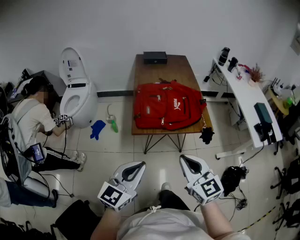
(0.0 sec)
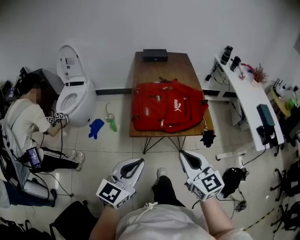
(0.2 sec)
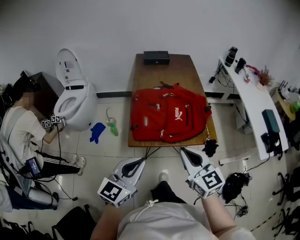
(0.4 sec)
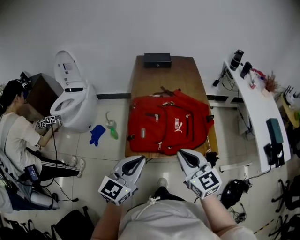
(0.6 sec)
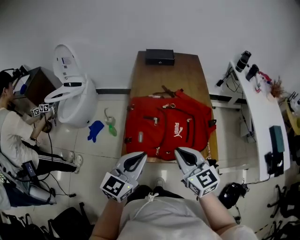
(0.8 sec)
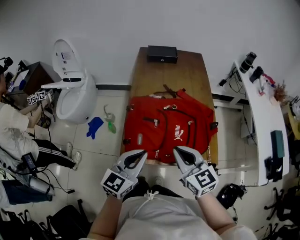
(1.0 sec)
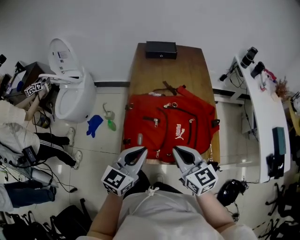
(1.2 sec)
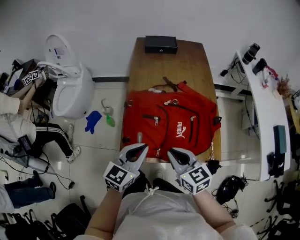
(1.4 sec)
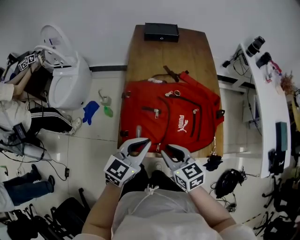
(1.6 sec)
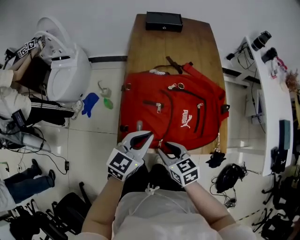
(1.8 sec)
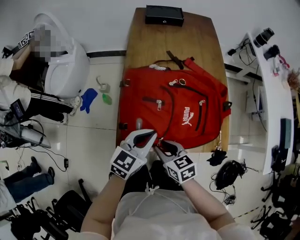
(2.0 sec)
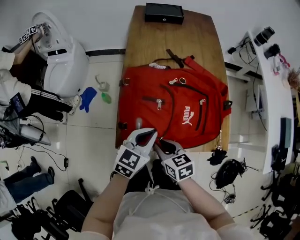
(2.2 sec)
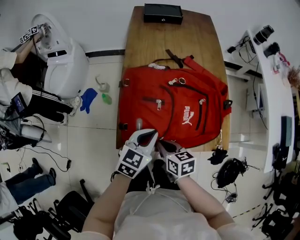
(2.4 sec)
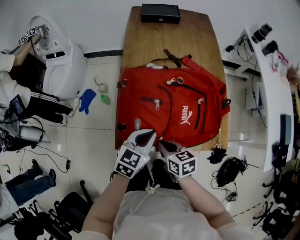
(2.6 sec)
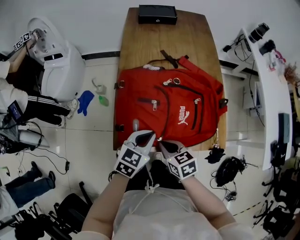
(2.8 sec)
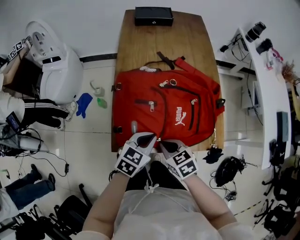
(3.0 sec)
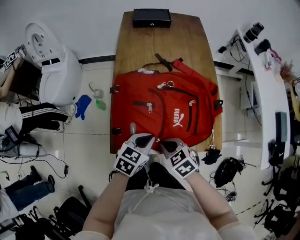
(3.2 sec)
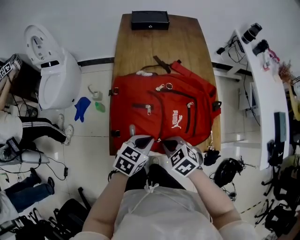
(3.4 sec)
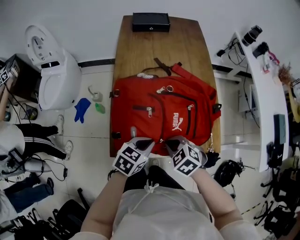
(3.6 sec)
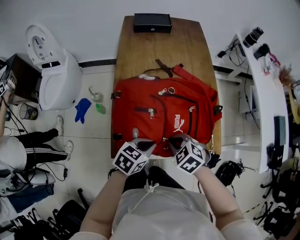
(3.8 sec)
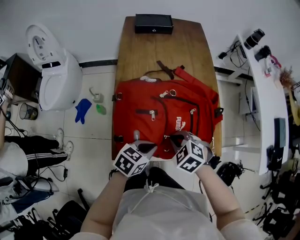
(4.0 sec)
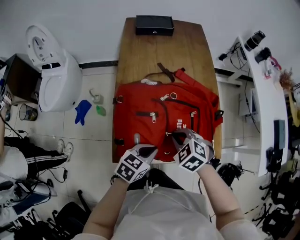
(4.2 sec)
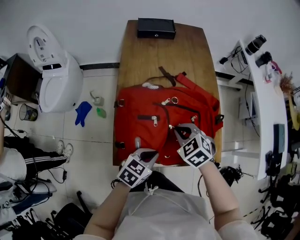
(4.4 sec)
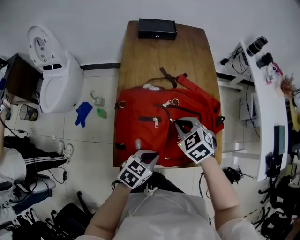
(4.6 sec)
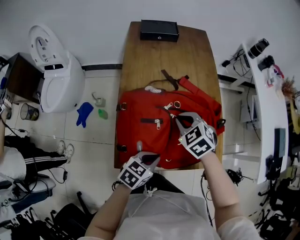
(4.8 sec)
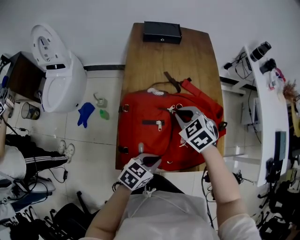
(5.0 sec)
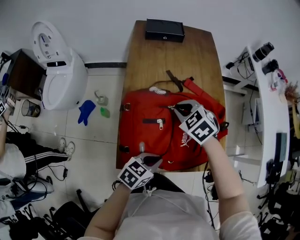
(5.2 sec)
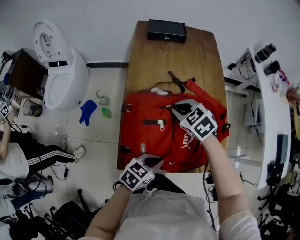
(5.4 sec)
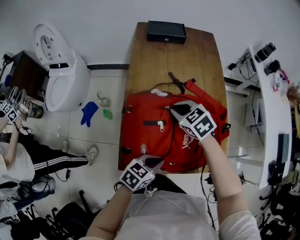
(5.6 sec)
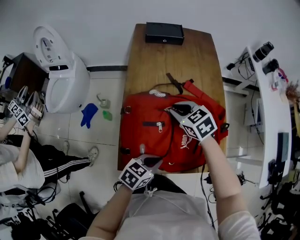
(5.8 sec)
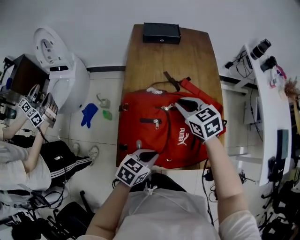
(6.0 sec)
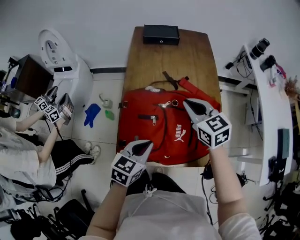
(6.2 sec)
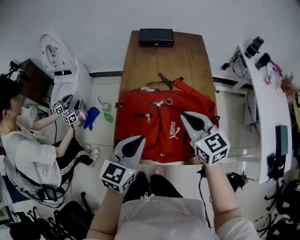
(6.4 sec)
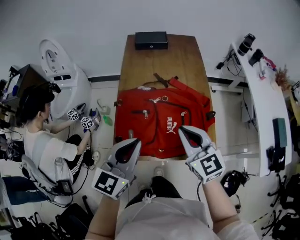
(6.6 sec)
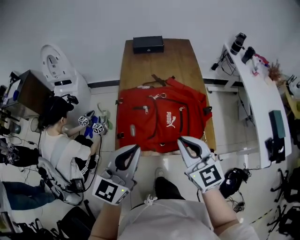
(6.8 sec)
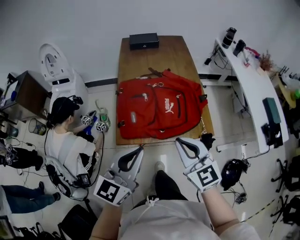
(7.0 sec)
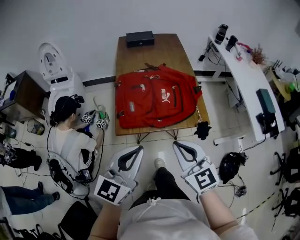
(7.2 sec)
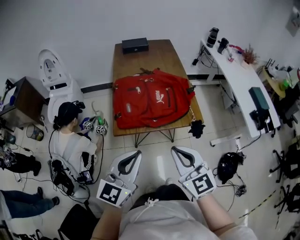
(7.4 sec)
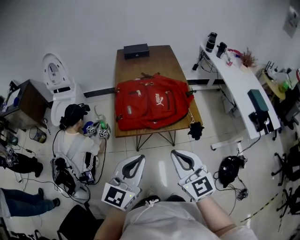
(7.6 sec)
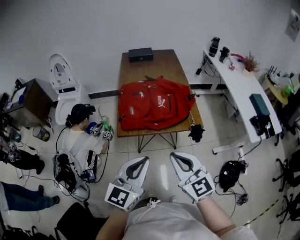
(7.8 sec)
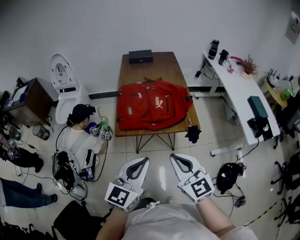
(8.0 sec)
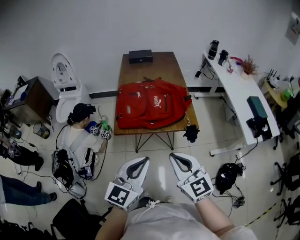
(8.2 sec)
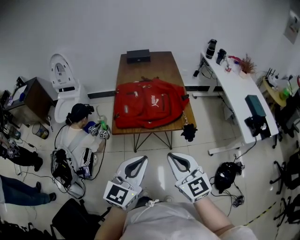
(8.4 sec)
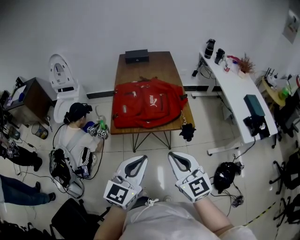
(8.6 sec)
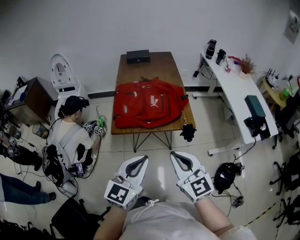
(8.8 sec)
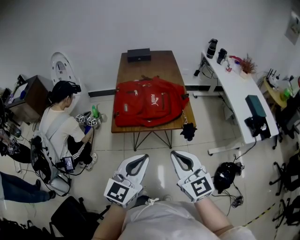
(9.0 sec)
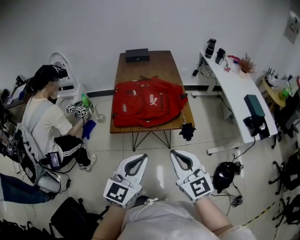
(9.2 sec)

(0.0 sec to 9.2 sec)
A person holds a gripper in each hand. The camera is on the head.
0.0 sec - 1.6 sec: The left gripper travels forward by approximately 35 cm. Meanwhile the right gripper shifts some 35 cm forward and downward, and turns by roughly 30 degrees.
1.6 sec - 3.0 sec: Both grippers travel together downward, some 10 cm. The left gripper swivels some 20 degrees.
3.0 sec - 4.6 sec: The right gripper goes roughly 20 cm forward and upward, and swivels some 30 degrees.
4.6 sec - 6.2 sec: The right gripper travels upward and forward by roughly 10 cm, and turns by roughly 30 degrees. Meanwhile the left gripper travels upward by roughly 10 cm.
6.2 sec - 7.6 sec: The left gripper moves backward and upward, roughly 35 cm, and turns by some 30 degrees; the right gripper is displaced backward by some 50 cm, and rotates approximately 20 degrees.
7.6 sec - 9.2 sec: The left gripper heads to the right, covering some 5 cm. Meanwhile the right gripper changes place by about 5 cm.

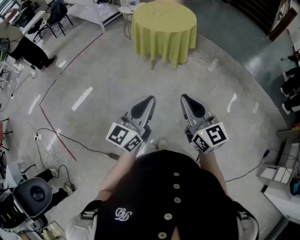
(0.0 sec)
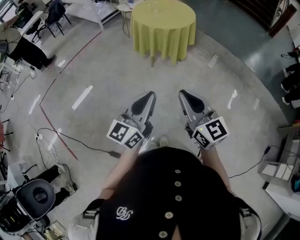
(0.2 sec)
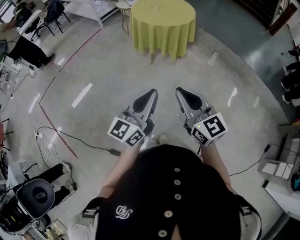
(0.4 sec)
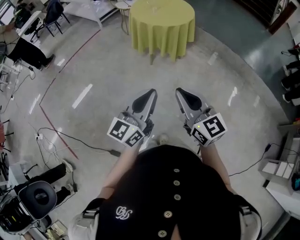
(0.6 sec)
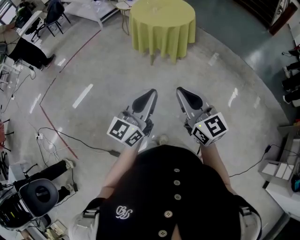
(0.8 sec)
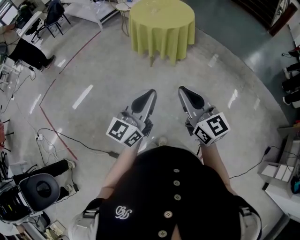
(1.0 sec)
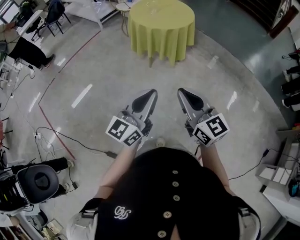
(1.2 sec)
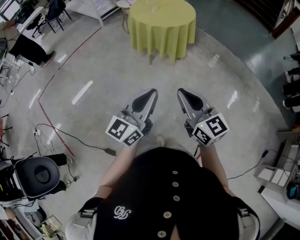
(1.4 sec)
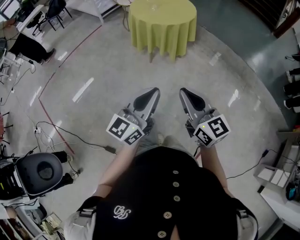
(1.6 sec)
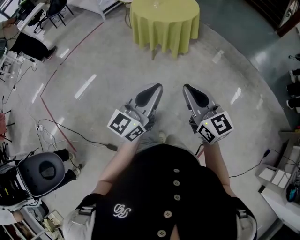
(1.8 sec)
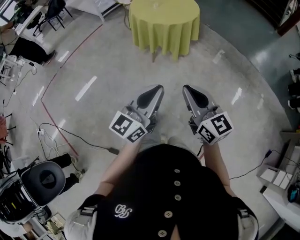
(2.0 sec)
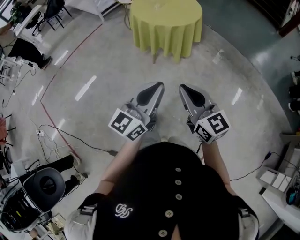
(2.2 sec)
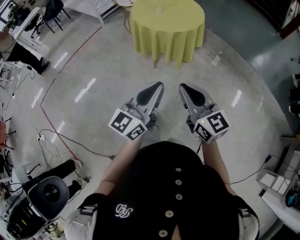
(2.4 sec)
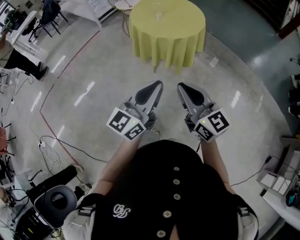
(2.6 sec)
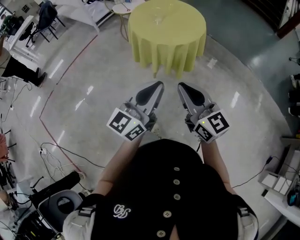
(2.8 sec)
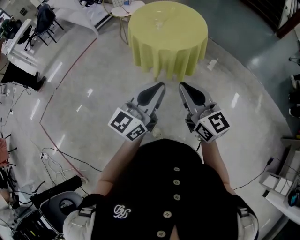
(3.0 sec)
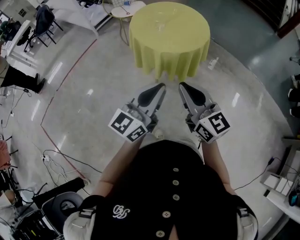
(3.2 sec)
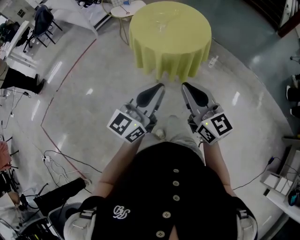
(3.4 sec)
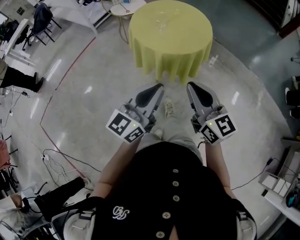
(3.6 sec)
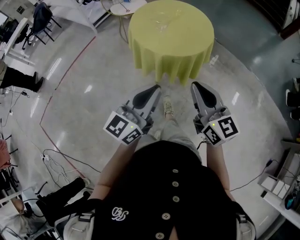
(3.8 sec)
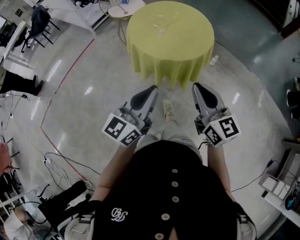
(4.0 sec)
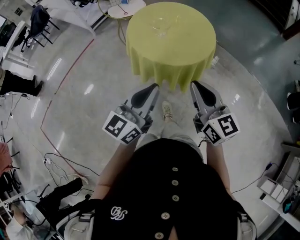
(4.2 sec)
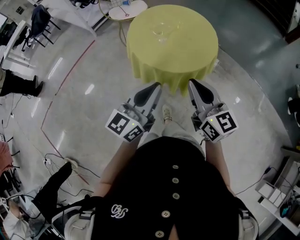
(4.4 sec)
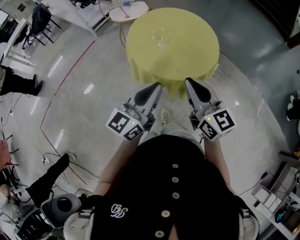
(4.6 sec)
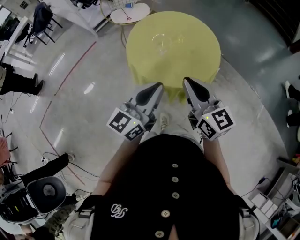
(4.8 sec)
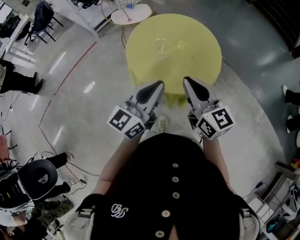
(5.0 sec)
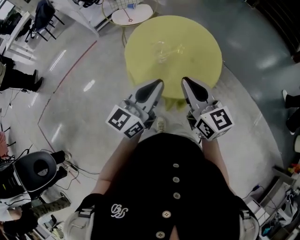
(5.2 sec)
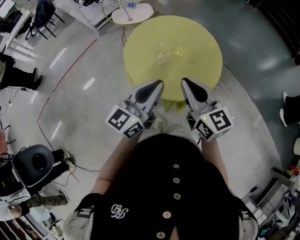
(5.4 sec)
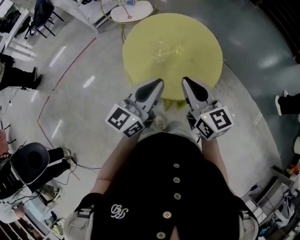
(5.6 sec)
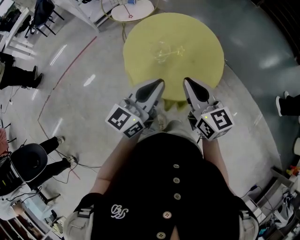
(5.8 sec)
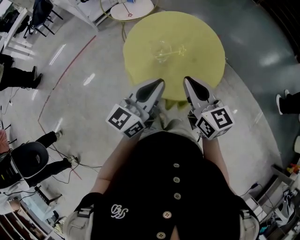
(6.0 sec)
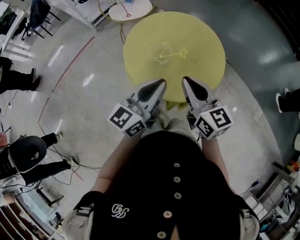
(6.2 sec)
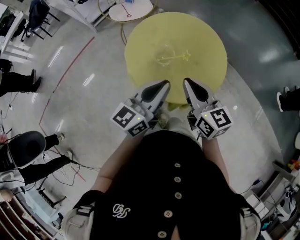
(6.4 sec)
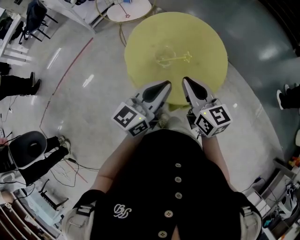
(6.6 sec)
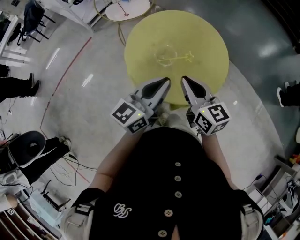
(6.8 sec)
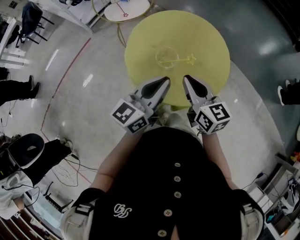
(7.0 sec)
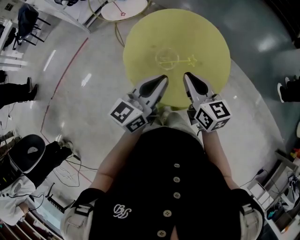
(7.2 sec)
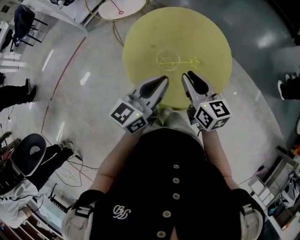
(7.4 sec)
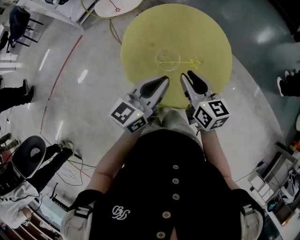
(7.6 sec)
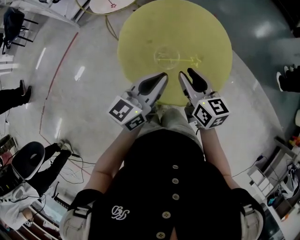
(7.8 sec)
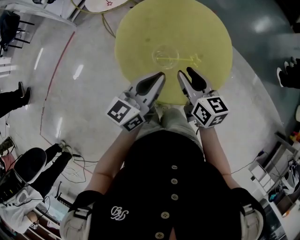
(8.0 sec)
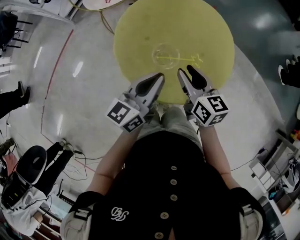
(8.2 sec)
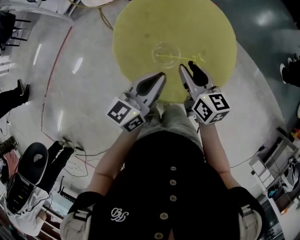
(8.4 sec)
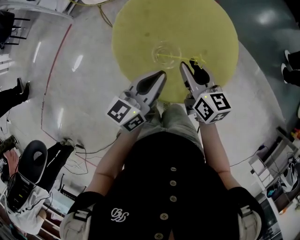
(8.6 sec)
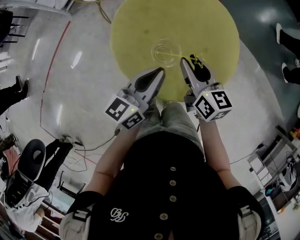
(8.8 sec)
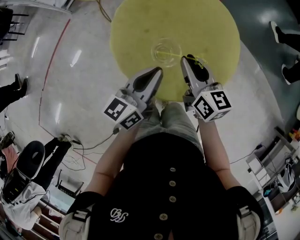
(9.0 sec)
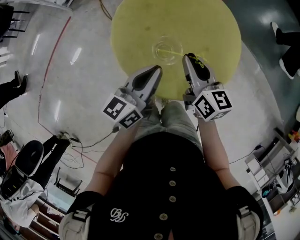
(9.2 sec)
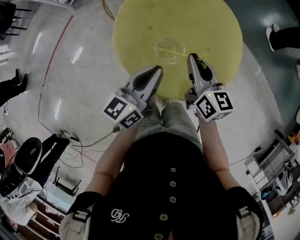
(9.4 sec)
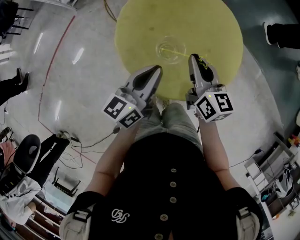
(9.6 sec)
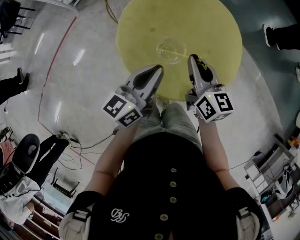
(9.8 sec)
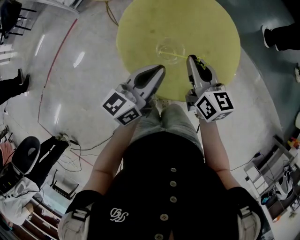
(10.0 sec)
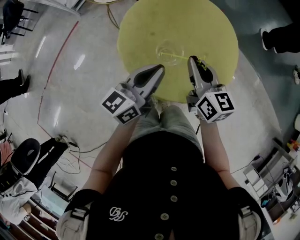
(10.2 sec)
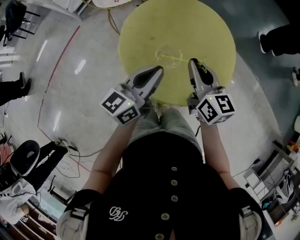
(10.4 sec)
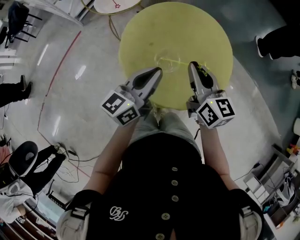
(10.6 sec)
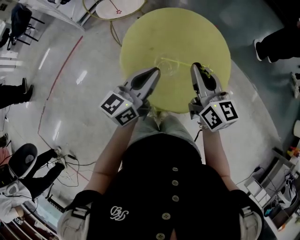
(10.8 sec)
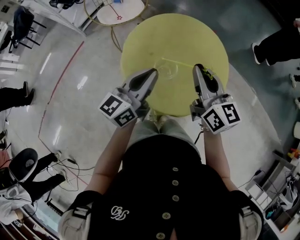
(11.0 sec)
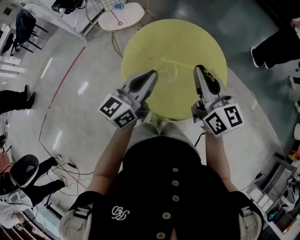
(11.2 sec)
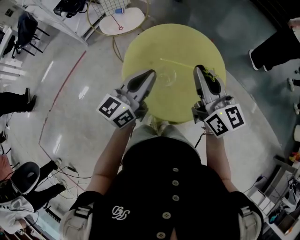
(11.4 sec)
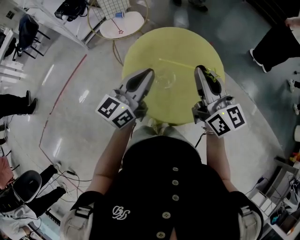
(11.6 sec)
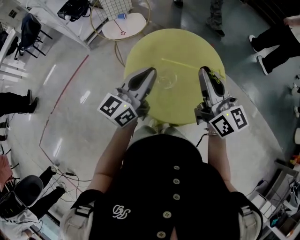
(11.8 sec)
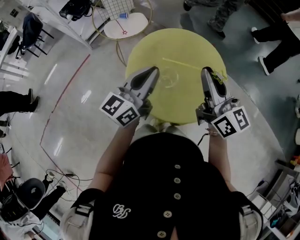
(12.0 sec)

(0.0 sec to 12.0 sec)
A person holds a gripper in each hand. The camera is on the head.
0.0 sec - 1.6 sec: The left gripper shifts some 5 cm to the right, while the right gripper ends up about 5 cm from where it was.
1.6 sec - 3.0 sec: Both grippers move forward, roughly 30 cm.
3.0 sec - 4.4 sec: Both grippers move forward, approximately 20 cm.
4.4 sec - 6.0 sec: The two grippers go some 20 cm forward.
6.0 sec - 7.6 sec: The left gripper heads forward, covering some 10 cm; the right gripper heads forward and downward, covering about 10 cm, and opens up.
7.6 sec - 9.0 sec: The right gripper travels forward by approximately 5 cm, while the left gripper heads downward, covering approximately 5 cm.
9.0 sec - 10.4 sec: There are only small adjustments of the grippers.
10.4 sec - 12.0 sec: The right gripper travels upward by approximately 15 cm, and turns by approximately 20 degrees; the left gripper is displaced upward by roughly 10 cm.

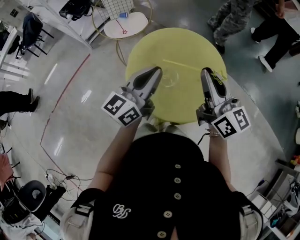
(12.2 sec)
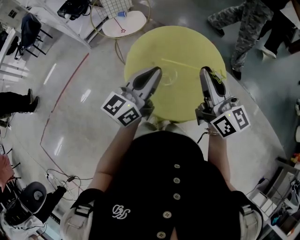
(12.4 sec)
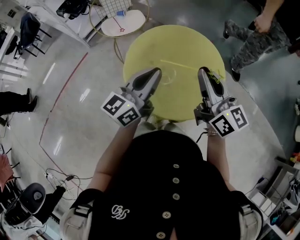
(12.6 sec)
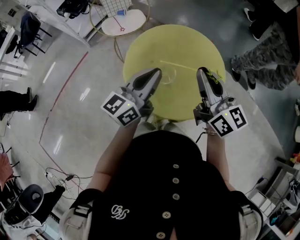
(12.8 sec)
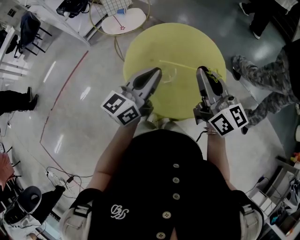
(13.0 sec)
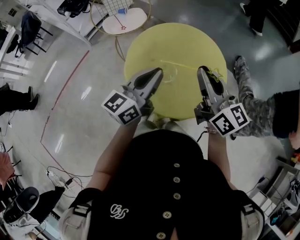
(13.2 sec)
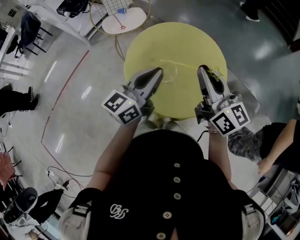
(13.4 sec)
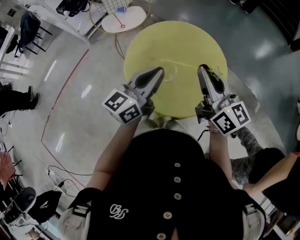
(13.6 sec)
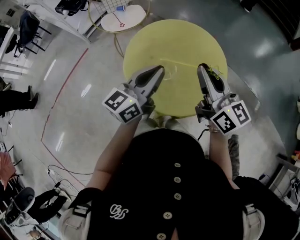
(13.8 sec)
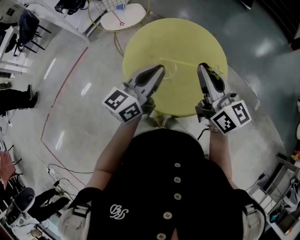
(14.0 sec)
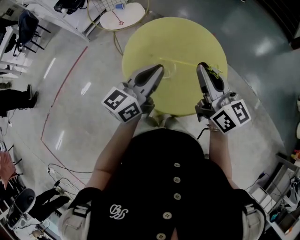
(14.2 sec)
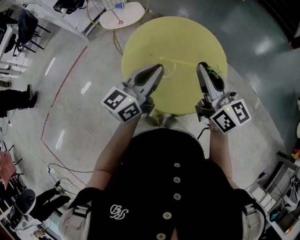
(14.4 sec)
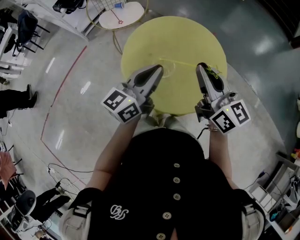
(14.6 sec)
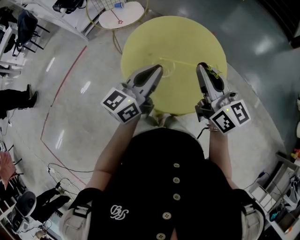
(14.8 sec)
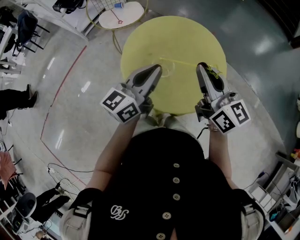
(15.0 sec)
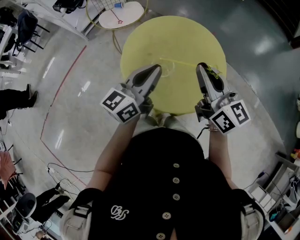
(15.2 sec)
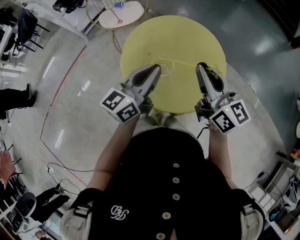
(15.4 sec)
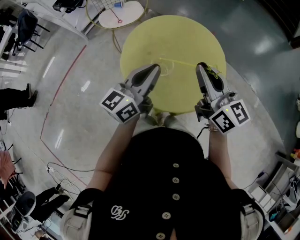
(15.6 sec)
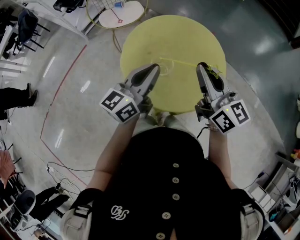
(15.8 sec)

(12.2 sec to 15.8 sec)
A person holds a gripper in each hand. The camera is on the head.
12.2 sec - 14.0 sec: The grippers stay close to where they were, moving slightly.
14.0 sec - 15.8 sec: Neither gripper changes place.
